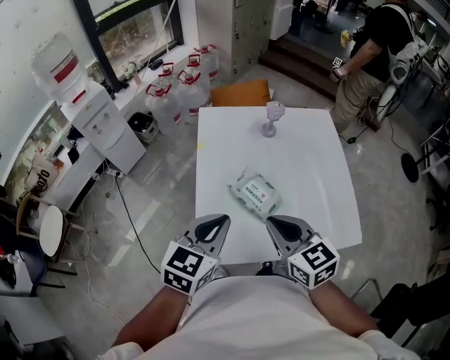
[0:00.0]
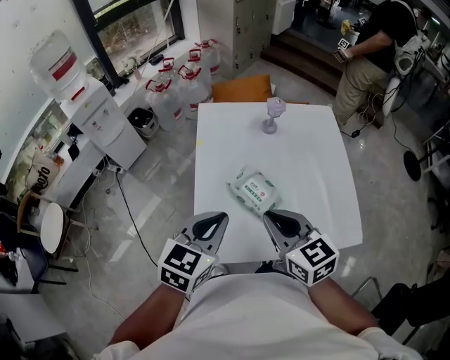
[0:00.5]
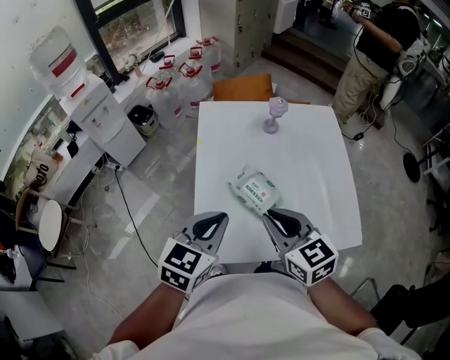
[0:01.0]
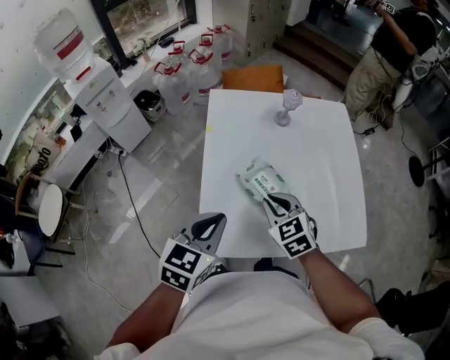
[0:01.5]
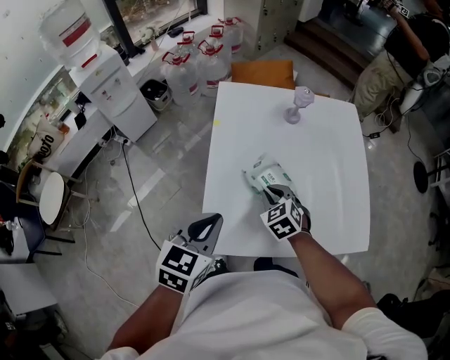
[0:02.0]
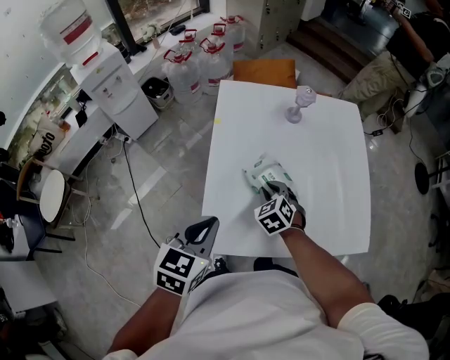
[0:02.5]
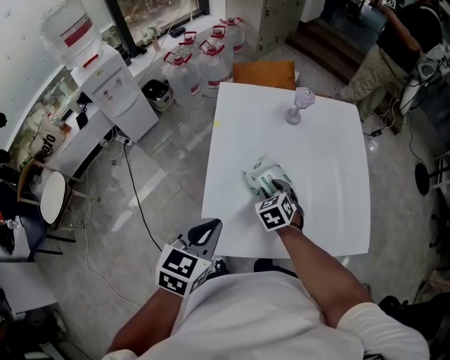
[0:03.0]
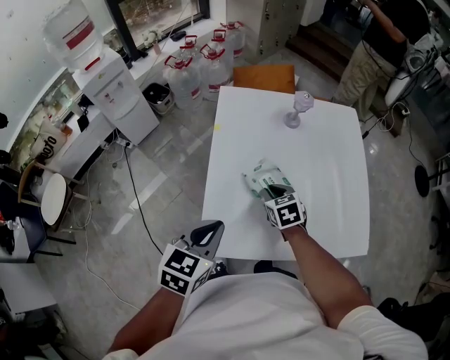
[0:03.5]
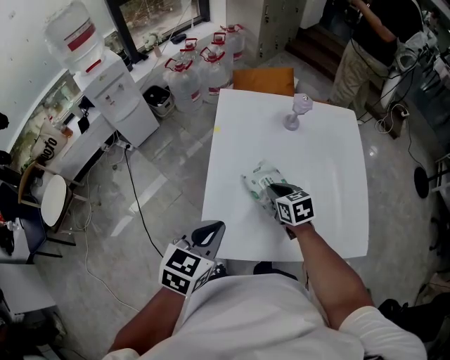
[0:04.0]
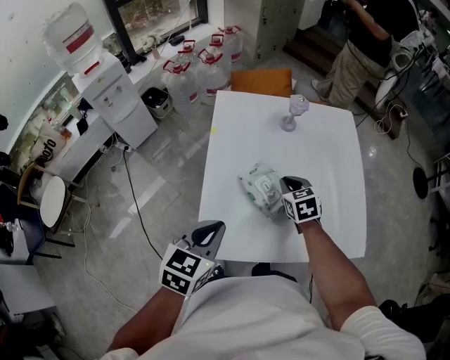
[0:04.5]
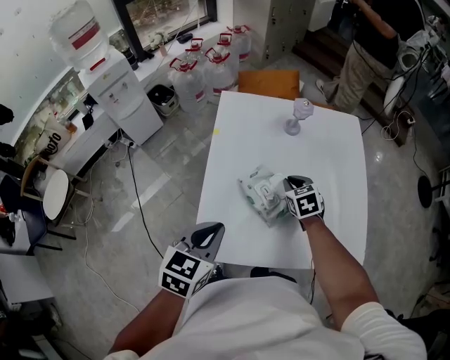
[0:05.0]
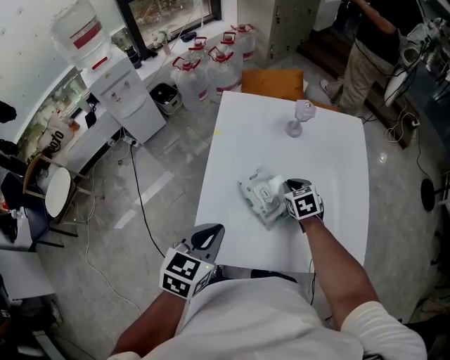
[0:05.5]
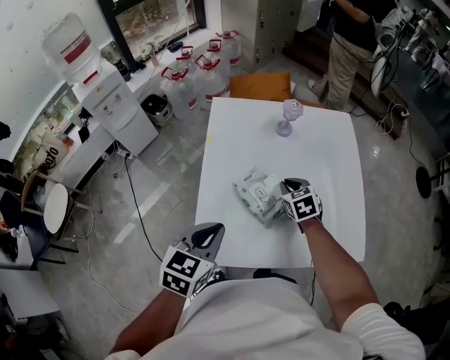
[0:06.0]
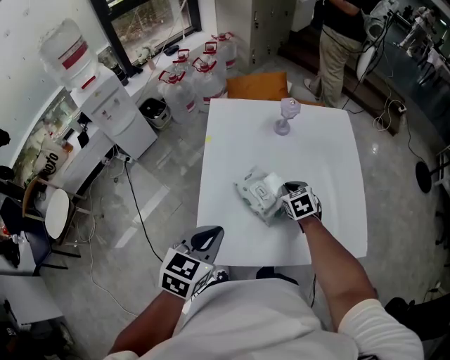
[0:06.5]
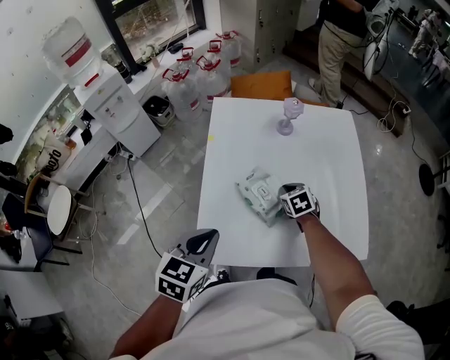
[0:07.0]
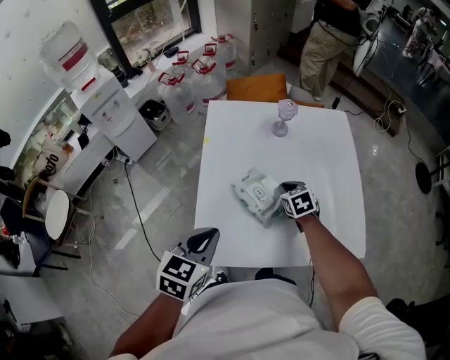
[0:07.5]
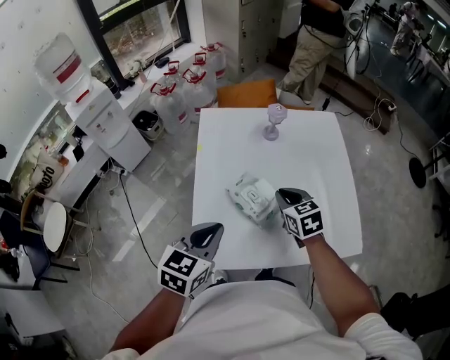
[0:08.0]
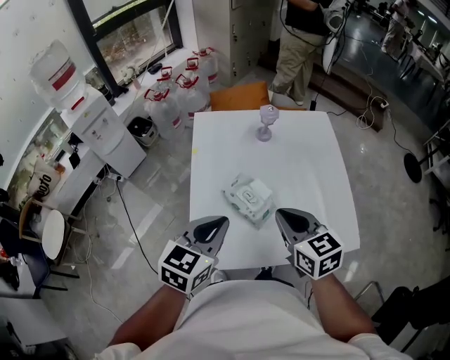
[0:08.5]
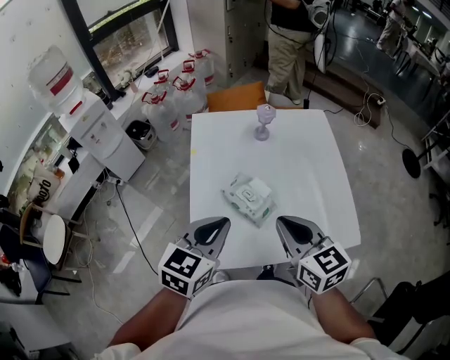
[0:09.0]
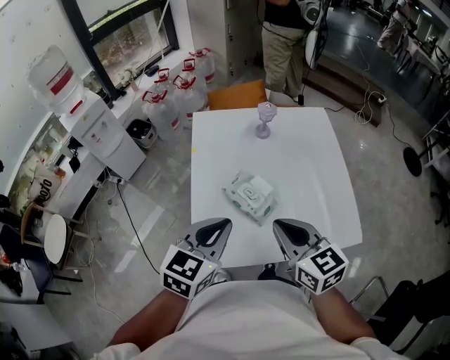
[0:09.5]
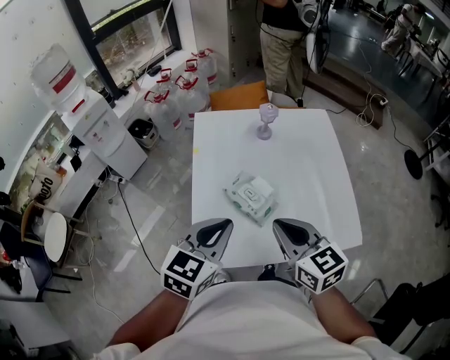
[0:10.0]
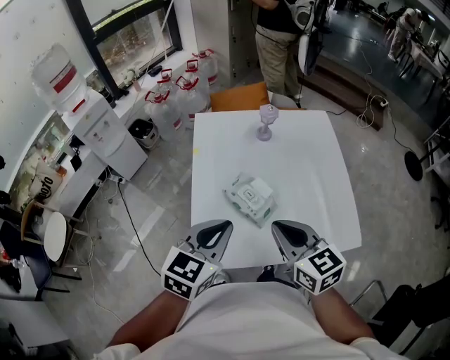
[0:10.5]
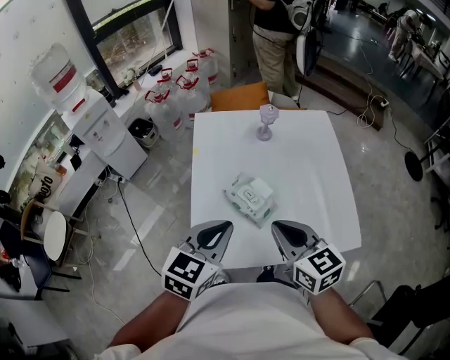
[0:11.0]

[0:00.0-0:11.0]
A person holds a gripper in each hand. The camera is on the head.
0:00.0 to 0:02.0: The right gripper heads downward and forward, covering roughly 20 cm, and changes its angle by about 40 degrees. Meanwhile the left gripper shifts about 5 cm downward.
0:02.0 to 0:03.5: The right gripper turns by about 20 degrees, and opens, then closes again.
0:03.5 to 0:05.5: The right gripper is displaced to the right and forward by roughly 10 cm.
0:05.5 to 0:07.5: There are only small adjustments of the grippers.
0:07.5 to 0:09.0: The left gripper travels upward by some 5 cm; the right gripper travels upward and backward by approximately 30 cm, and angles its fingers upward, by some 30 degrees.
0:09.0 to 0:11.0: The grippers move only a little.

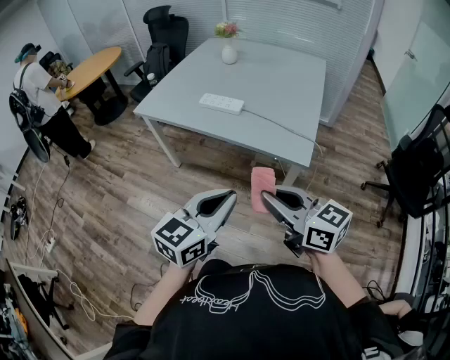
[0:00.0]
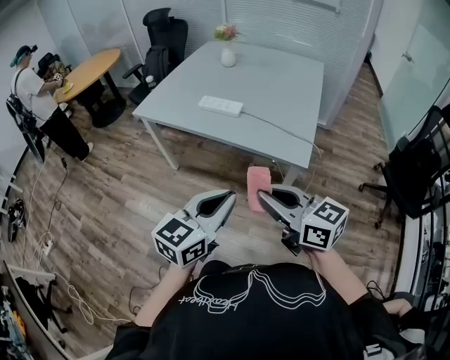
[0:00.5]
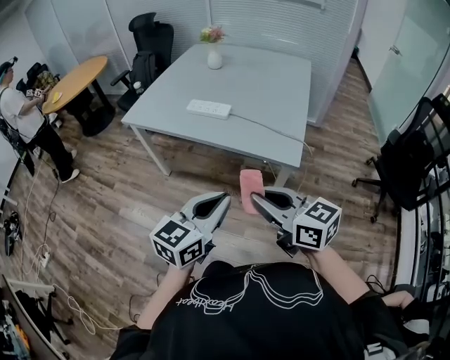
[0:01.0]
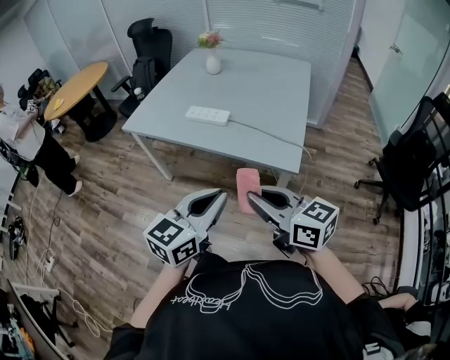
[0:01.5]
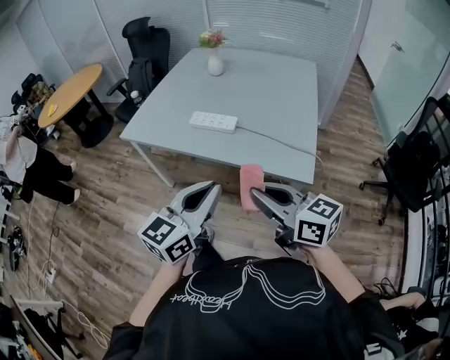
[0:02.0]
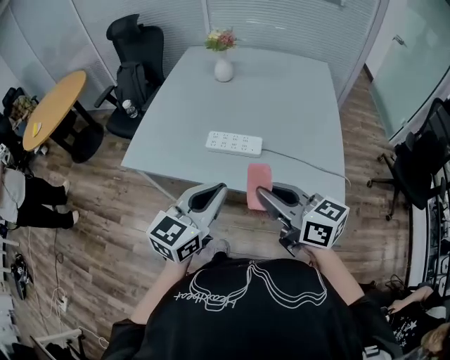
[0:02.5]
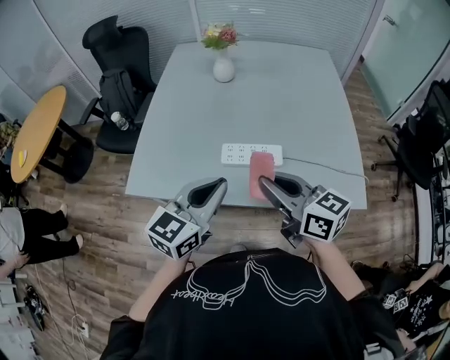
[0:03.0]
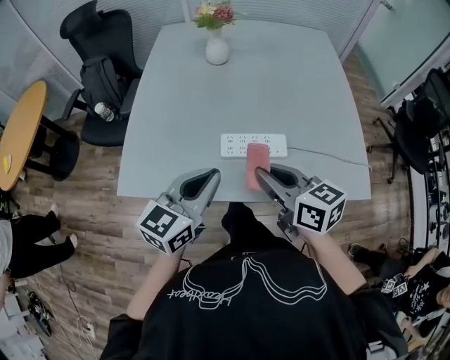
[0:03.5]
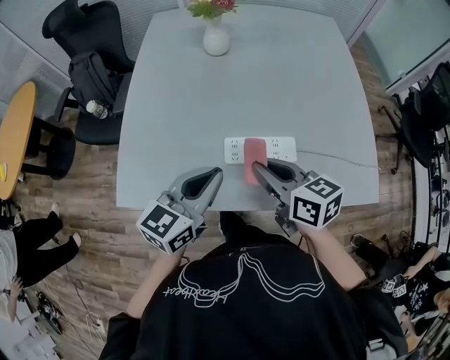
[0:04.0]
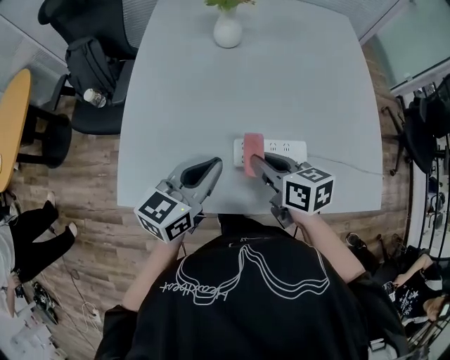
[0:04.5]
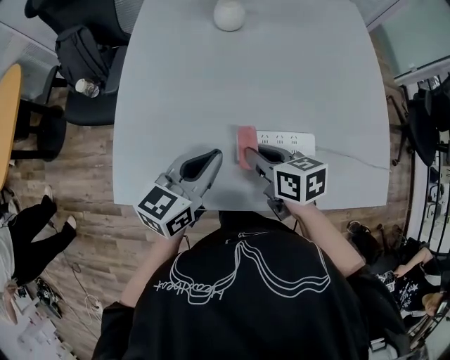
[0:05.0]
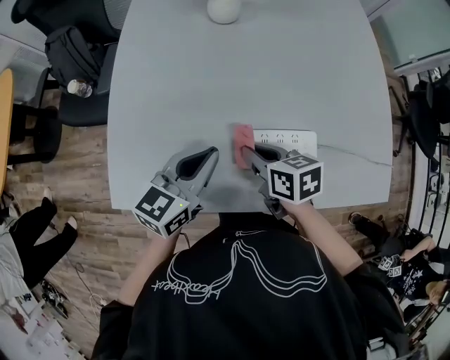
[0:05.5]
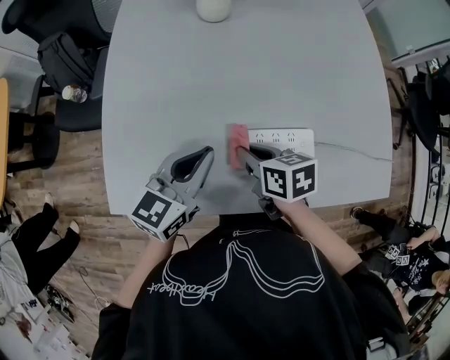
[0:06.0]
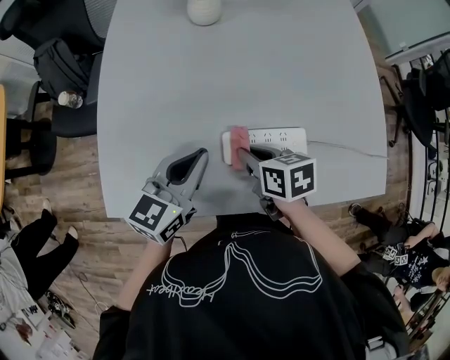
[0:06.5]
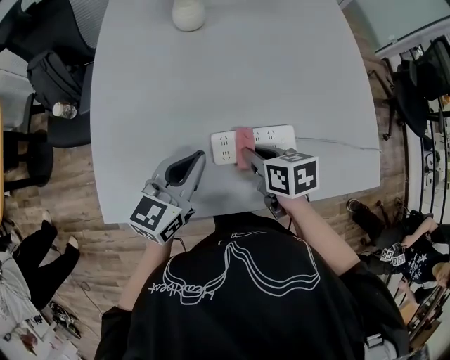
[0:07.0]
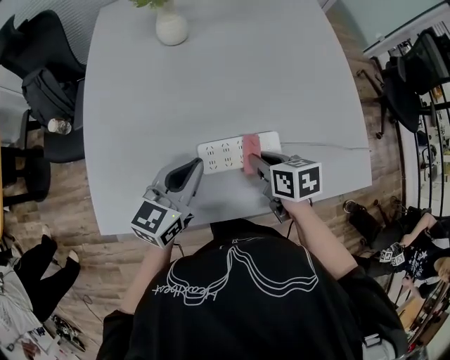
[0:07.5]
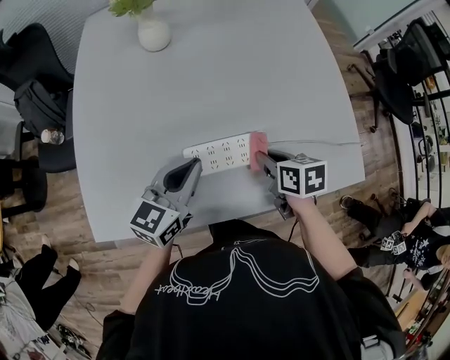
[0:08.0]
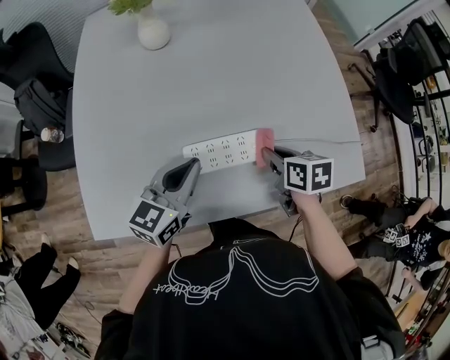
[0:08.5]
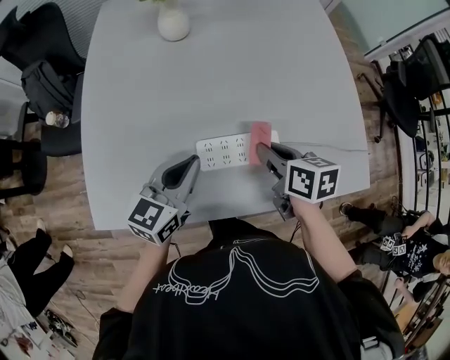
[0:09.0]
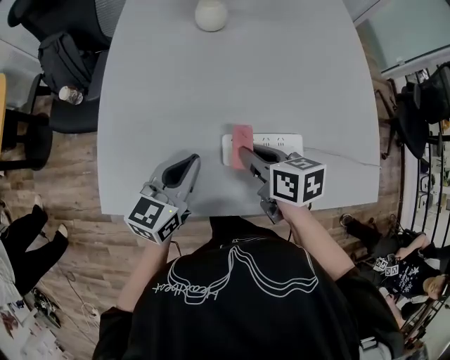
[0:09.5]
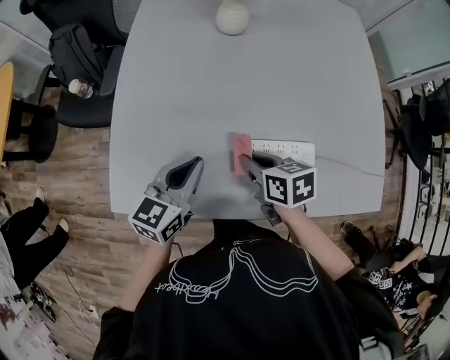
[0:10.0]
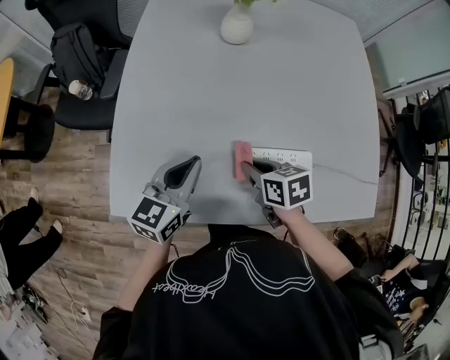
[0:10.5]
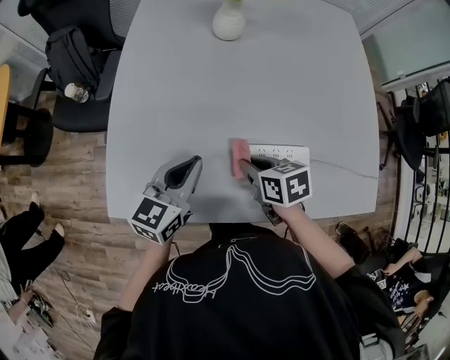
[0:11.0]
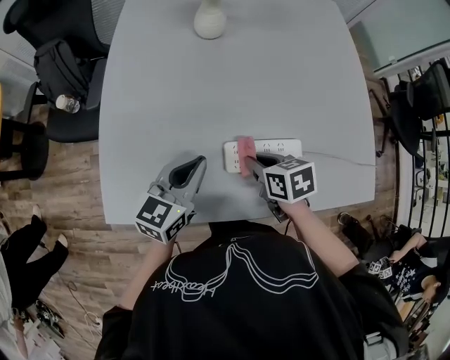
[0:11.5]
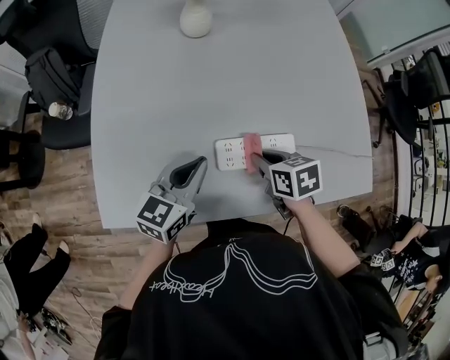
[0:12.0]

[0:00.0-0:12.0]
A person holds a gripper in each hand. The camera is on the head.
0:00.0 to 0:02.0: Both grippers move forward, approximately 10 cm.
0:02.0 to 0:04.0: Both grippers are carried forward and to the left, about 50 cm. The left gripper changes its angle by some 20 degrees. Meanwhile the right gripper changes its angle by about 30 degrees.
0:04.0 to 0:06.0: The right gripper is displaced downward and forward by roughly 15 cm, and turns by roughly 20 degrees. Meanwhile the left gripper heads forward and downward, covering roughly 10 cm.
0:06.0 to 0:08.0: The left gripper is displaced to the right by approximately 10 cm. Meanwhile the right gripper goes some 20 cm to the right.
0:08.0 to 0:10.0: Both grippers travel together to the left, some 15 cm.
0:10.0 to 0:12.0: The two grippers go some 10 cm to the right.

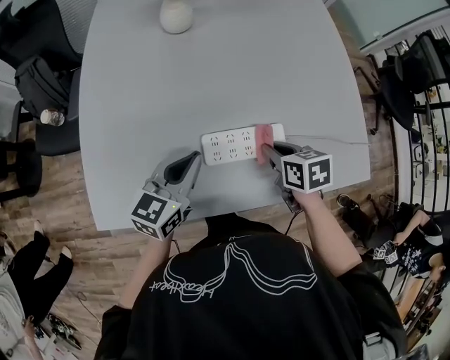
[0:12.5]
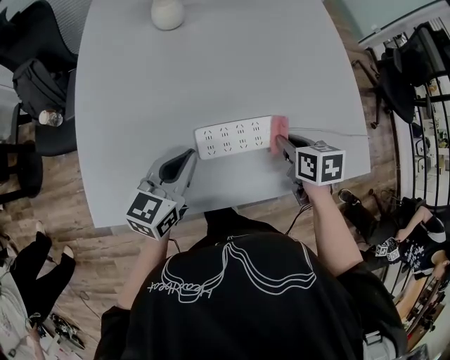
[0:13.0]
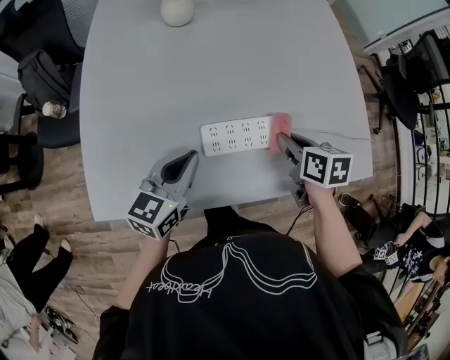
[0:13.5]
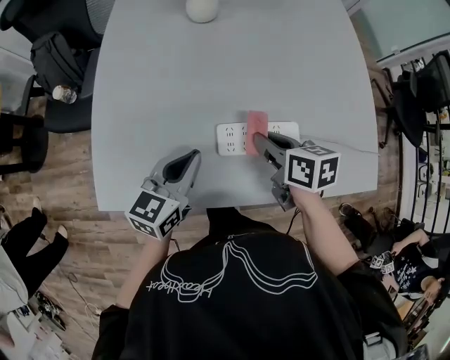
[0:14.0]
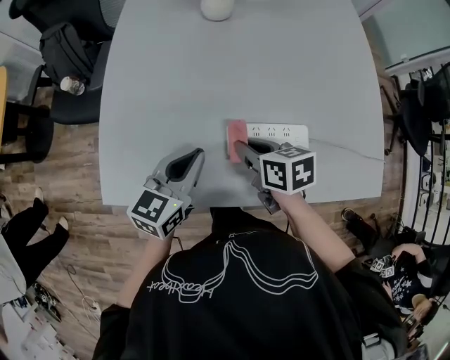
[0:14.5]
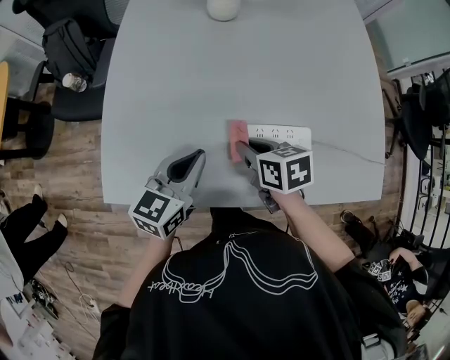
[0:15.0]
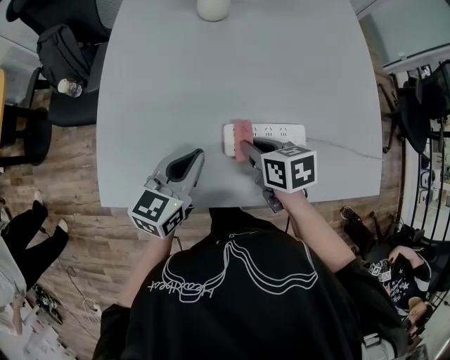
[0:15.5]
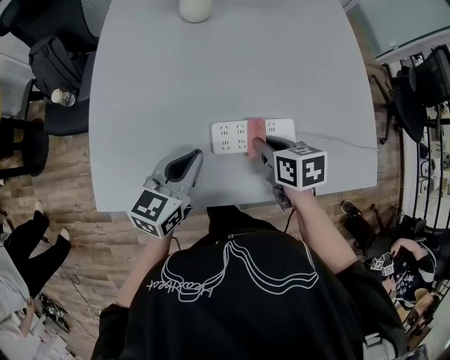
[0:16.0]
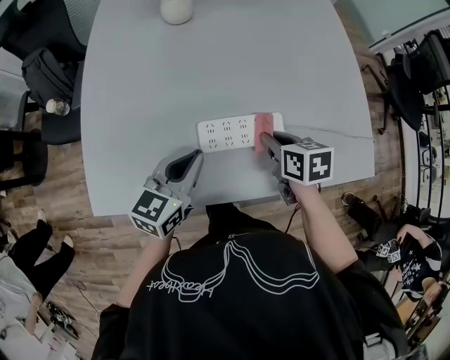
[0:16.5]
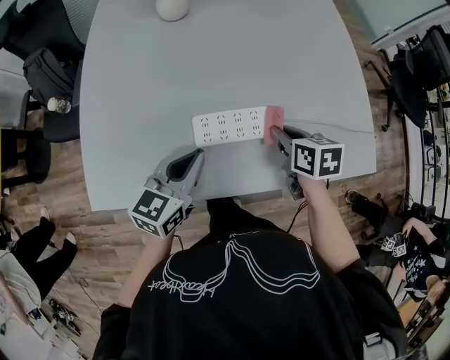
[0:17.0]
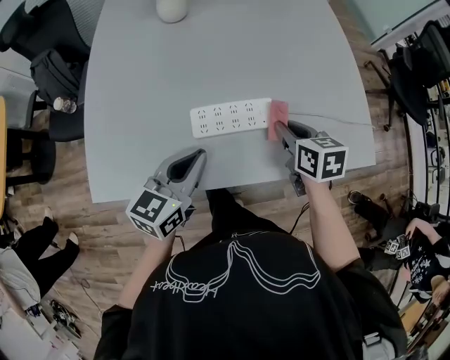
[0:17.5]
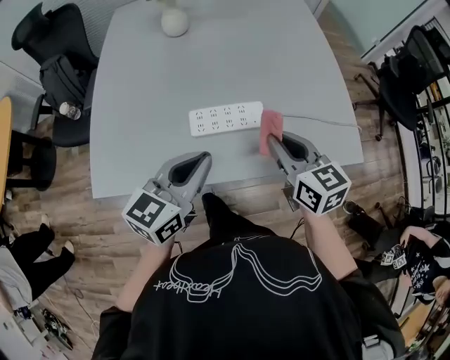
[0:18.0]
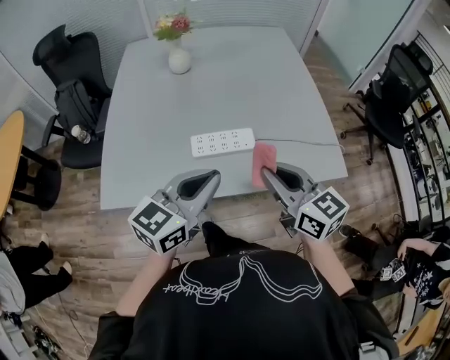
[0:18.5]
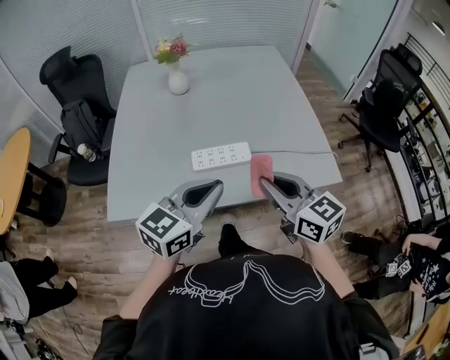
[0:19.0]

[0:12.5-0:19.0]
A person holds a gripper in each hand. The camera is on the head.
0:12.5 to 0:14.5: The right gripper travels to the left by approximately 15 cm. Meanwhile the left gripper shifts by roughly 5 cm.
0:14.5 to 0:17.0: The left gripper moves to the right, some 10 cm, while the right gripper is displaced to the right by approximately 20 cm.
0:17.0 to 0:19.0: The two grippers go approximately 25 cm upward and backward. The right gripper tips its fingers upward by roughly 40 degrees.
